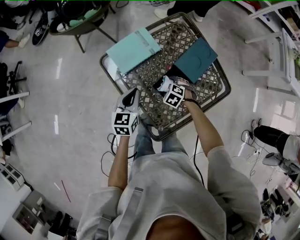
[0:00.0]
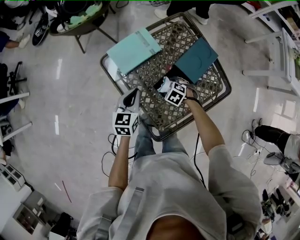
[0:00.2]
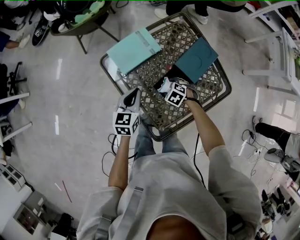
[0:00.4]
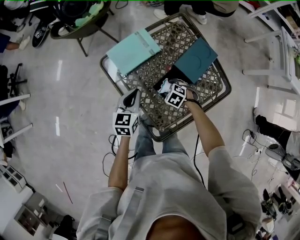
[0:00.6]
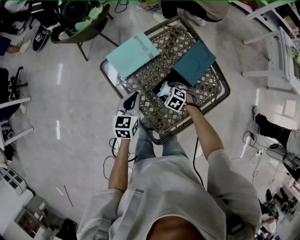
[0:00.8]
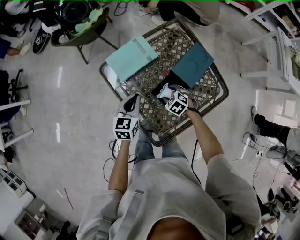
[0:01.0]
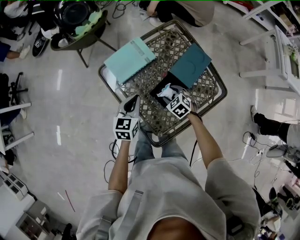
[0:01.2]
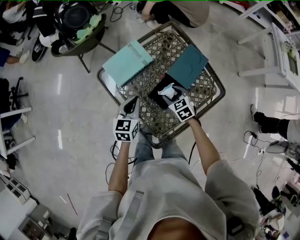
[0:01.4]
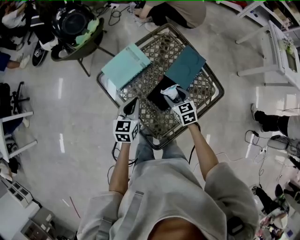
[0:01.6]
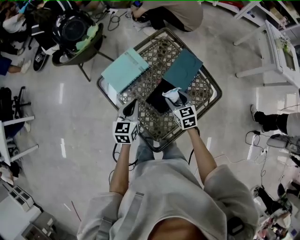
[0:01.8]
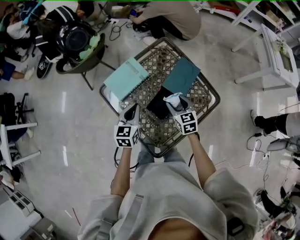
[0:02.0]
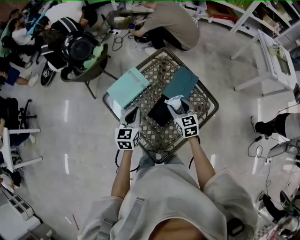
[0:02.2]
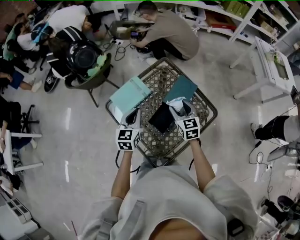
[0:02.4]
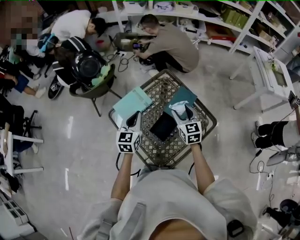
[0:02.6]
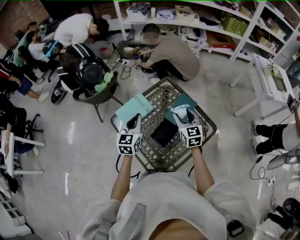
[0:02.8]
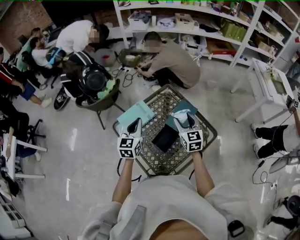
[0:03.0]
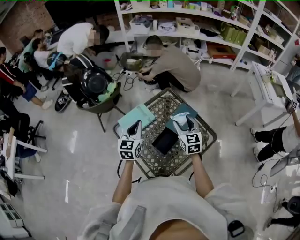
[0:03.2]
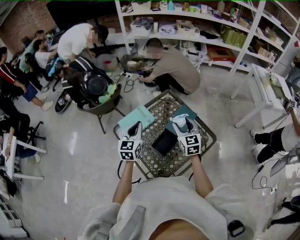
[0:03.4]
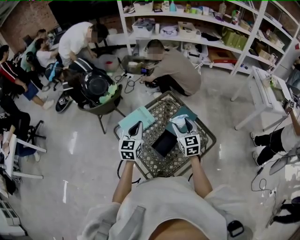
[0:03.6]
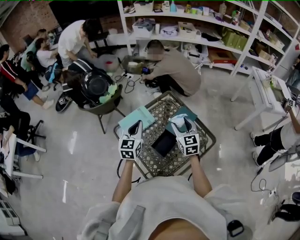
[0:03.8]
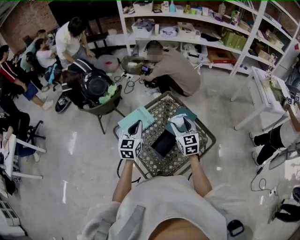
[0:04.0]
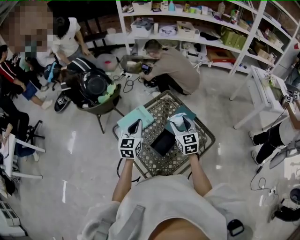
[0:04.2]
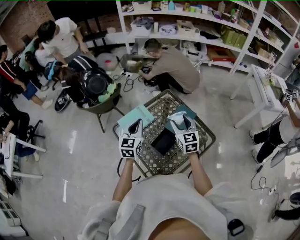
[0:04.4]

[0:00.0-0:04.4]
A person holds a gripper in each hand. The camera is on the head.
0:00.0 to 0:01.4: The right gripper shifts roughly 10 cm upward, and turns by about 40 degrees.
0:01.4 to 0:03.0: The grippers both shift upward by approximately 20 cm. The right gripper points its fingers roughly 30 degrees further upward.
0:03.0 to 0:04.4: The grippers stay close to where they were, moving slightly.

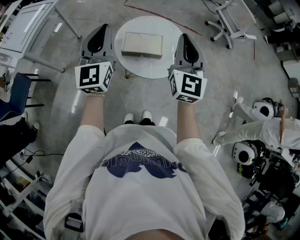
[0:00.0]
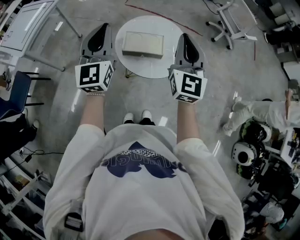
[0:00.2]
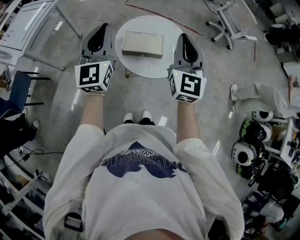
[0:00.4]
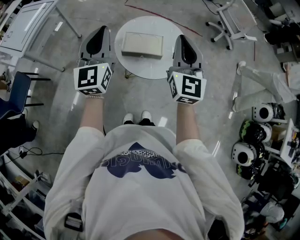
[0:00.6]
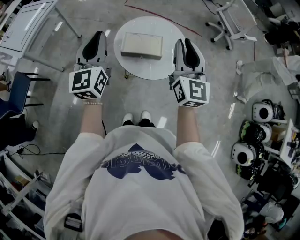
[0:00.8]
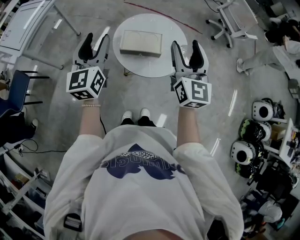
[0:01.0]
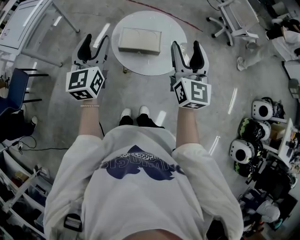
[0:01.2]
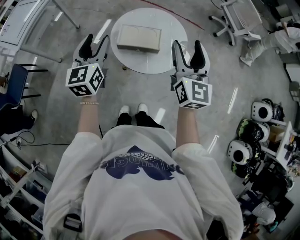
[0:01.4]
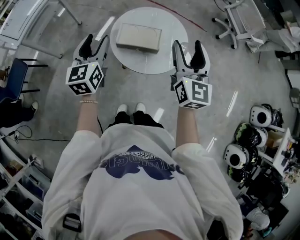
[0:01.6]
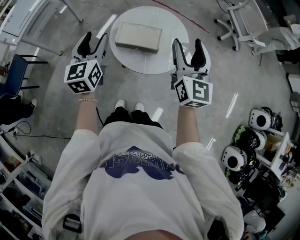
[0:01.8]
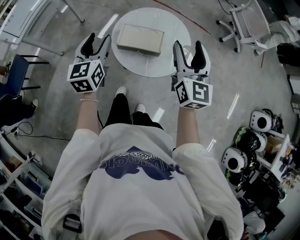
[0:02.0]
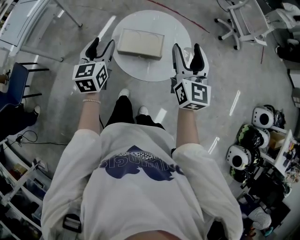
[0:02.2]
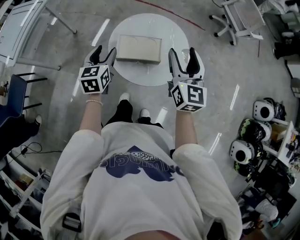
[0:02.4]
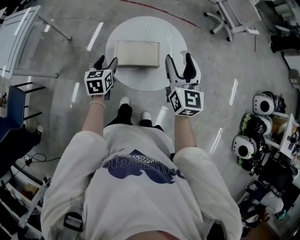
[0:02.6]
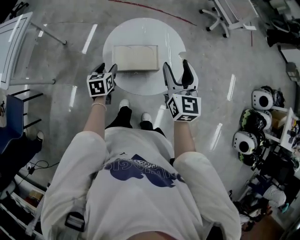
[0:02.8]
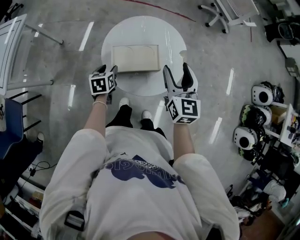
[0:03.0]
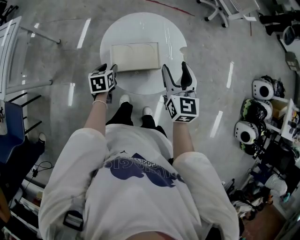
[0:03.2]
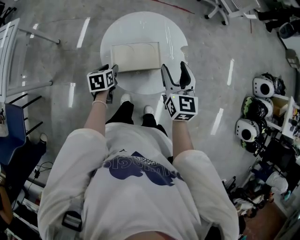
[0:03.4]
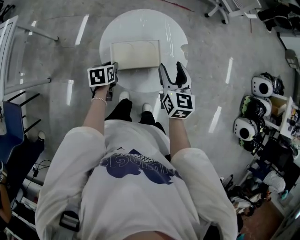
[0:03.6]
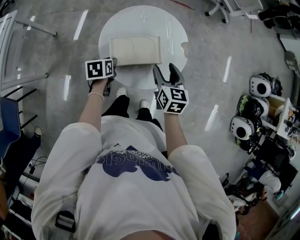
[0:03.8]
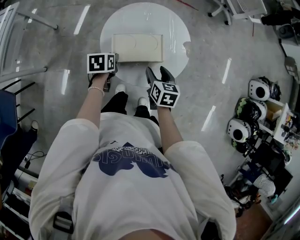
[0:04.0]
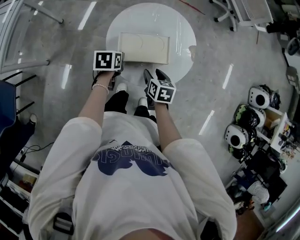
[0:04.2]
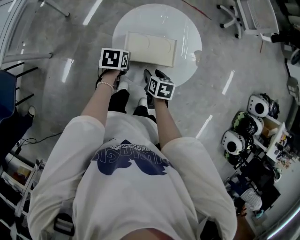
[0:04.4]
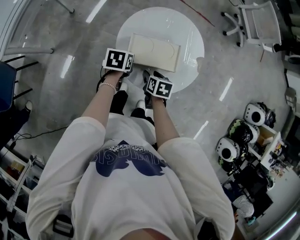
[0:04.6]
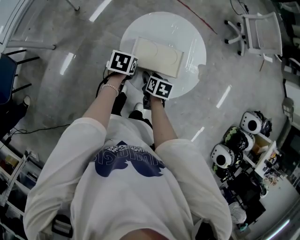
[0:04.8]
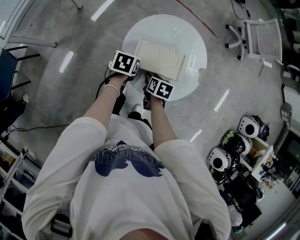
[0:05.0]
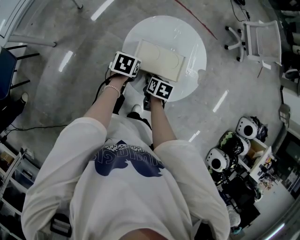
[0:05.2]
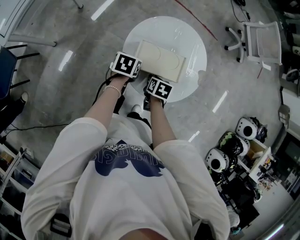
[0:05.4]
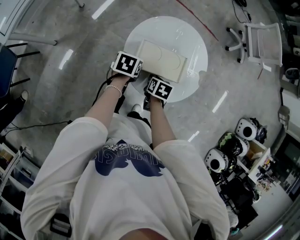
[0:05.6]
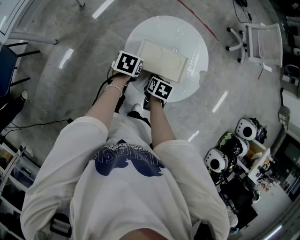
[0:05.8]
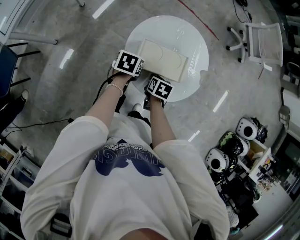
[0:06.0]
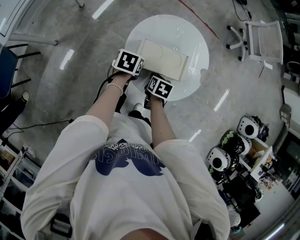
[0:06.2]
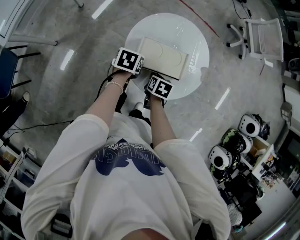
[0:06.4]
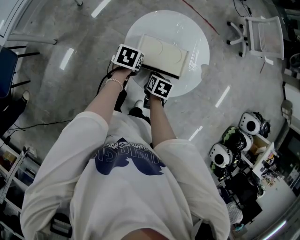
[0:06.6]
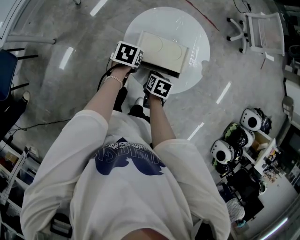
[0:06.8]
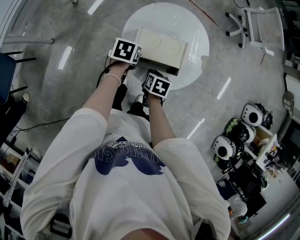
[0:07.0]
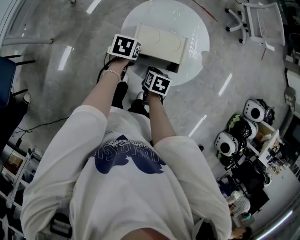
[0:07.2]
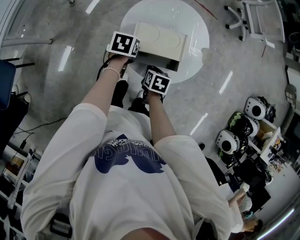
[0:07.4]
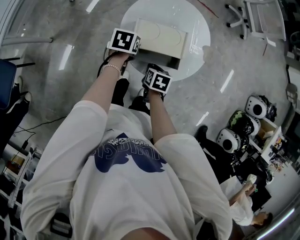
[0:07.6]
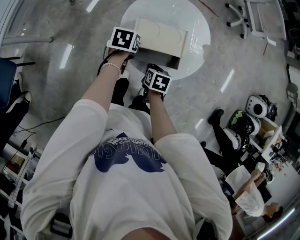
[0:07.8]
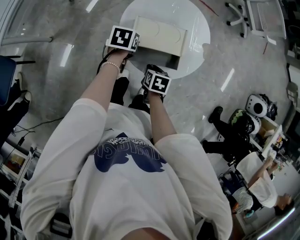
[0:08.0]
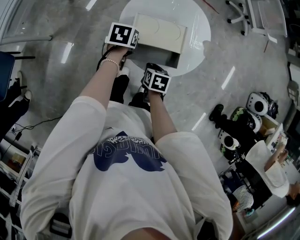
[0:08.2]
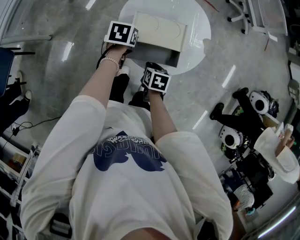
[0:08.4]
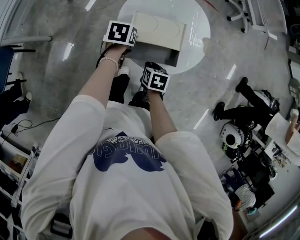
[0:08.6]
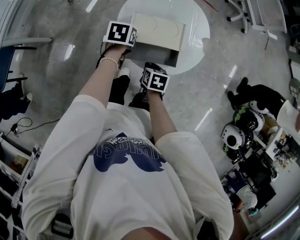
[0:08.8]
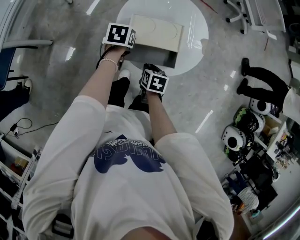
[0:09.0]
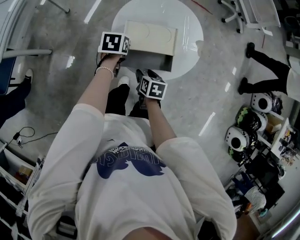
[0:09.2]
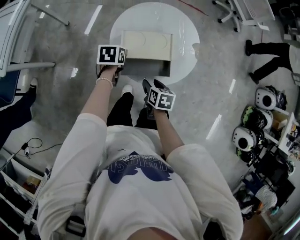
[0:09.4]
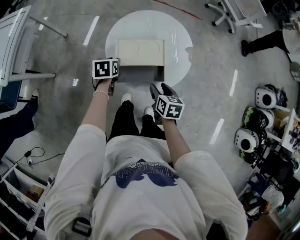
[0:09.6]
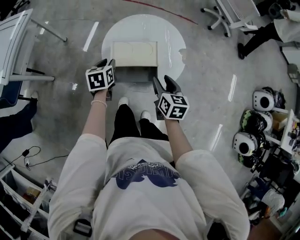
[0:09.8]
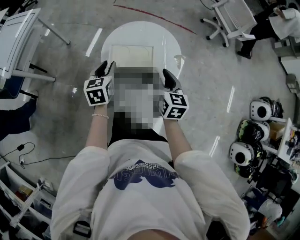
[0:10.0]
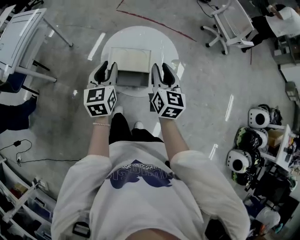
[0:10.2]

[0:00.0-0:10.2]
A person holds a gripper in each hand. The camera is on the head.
0:00.0 to 0:01.4: The left gripper travels downward by roughly 10 cm, swivels approximately 20 degrees, and opens up; the right gripper moves approximately 5 cm, and opens.
0:01.4 to 0:03.0: The left gripper shifts about 35 cm downward and forward, and tips its fingers downward by approximately 40 degrees; the right gripper goes some 15 cm downward and forward.
0:03.0 to 0:04.4: The left gripper closes, while the right gripper moves downward, roughly 25 cm, and angles its fingers downward, by roughly 40 degrees.
0:04.4 to 0:05.8: The right gripper closes.
0:05.8 to 0:07.2: The grippers stay close to where they were, moving slightly.
0:07.2 to 0:08.8: The grippers make only small movements.
0:08.8 to 0:10.2: The left gripper moves upward, roughly 25 cm, and angles its fingers upward, by about 40 degrees; the right gripper shifts some 35 cm upward and to the right, and tips its fingers upward by about 50 degrees.

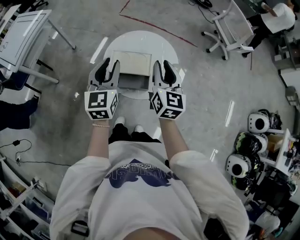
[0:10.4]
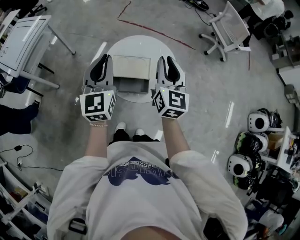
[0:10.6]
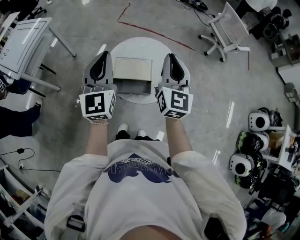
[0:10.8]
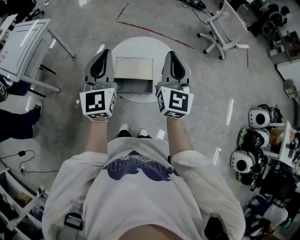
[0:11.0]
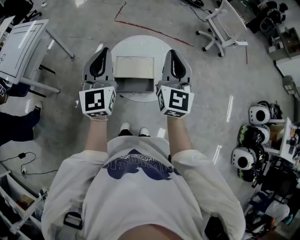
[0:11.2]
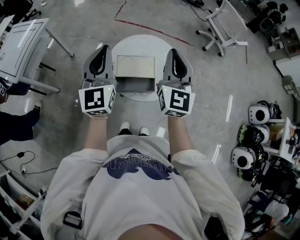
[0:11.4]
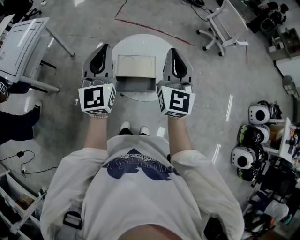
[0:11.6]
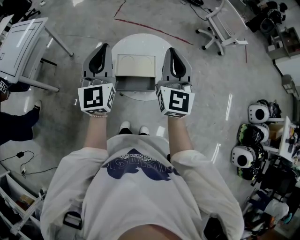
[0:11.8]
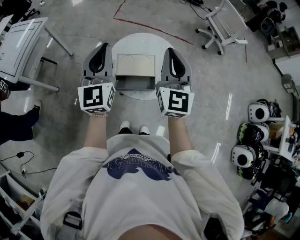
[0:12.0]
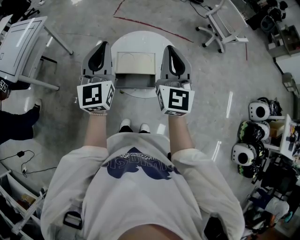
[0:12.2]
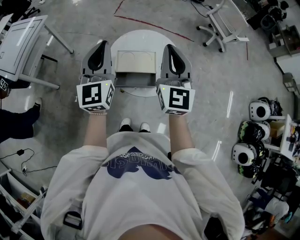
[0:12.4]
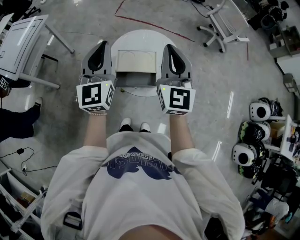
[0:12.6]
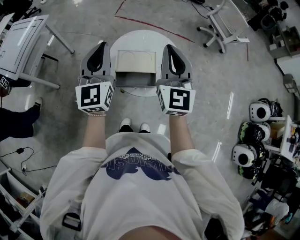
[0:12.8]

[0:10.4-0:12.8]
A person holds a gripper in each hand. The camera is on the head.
0:10.4 to 0:11.6: The left gripper moves upward and to the left, approximately 10 cm, and closes its fingers; the right gripper goes roughly 10 cm upward, rotates about 20 degrees, and closes up.
0:11.6 to 0:12.8: The grippers make only small movements.

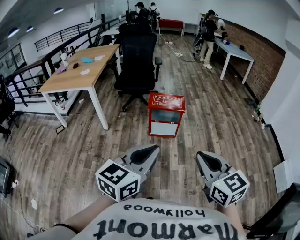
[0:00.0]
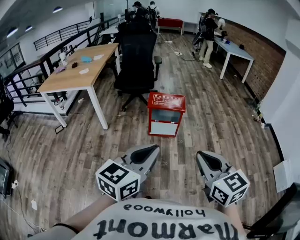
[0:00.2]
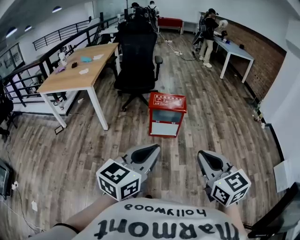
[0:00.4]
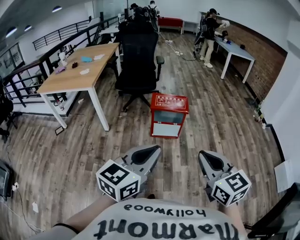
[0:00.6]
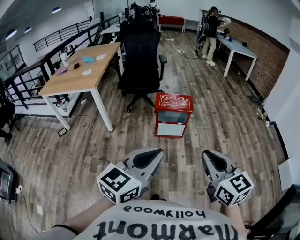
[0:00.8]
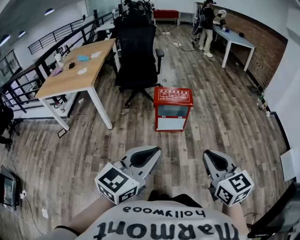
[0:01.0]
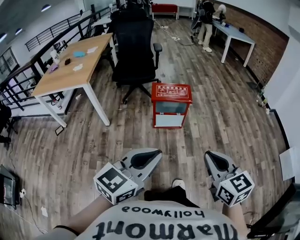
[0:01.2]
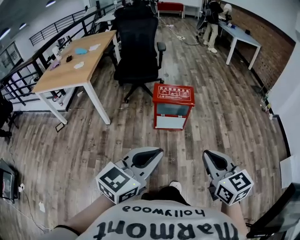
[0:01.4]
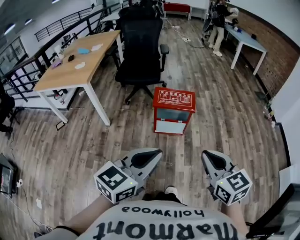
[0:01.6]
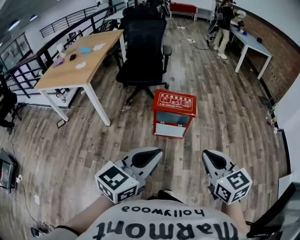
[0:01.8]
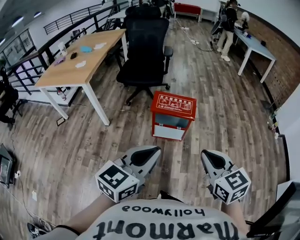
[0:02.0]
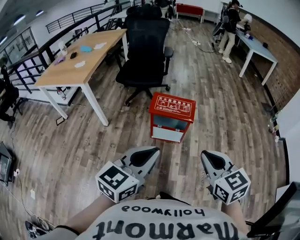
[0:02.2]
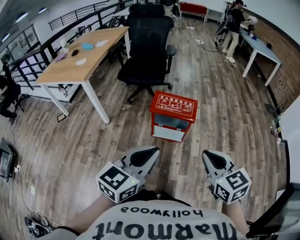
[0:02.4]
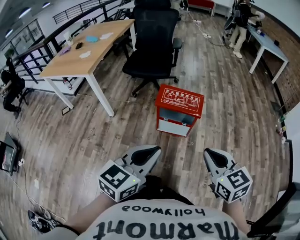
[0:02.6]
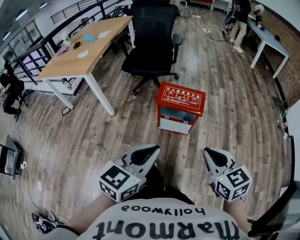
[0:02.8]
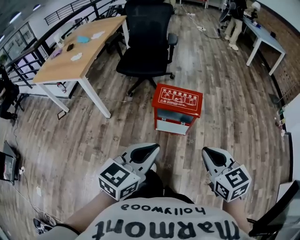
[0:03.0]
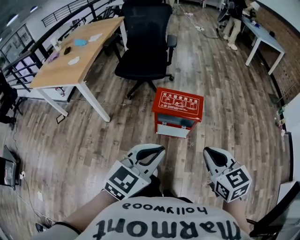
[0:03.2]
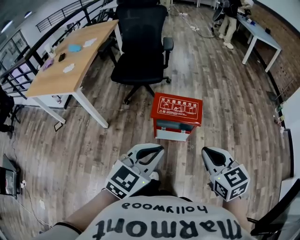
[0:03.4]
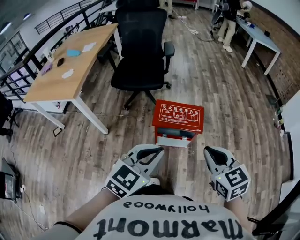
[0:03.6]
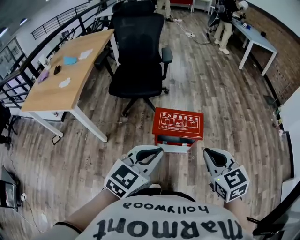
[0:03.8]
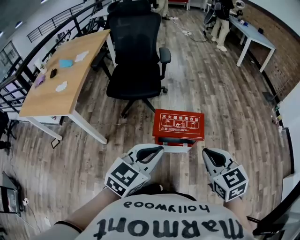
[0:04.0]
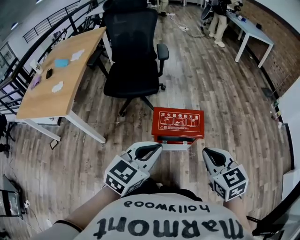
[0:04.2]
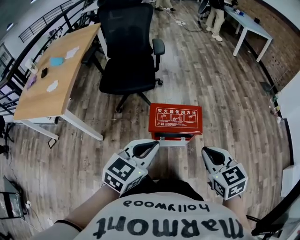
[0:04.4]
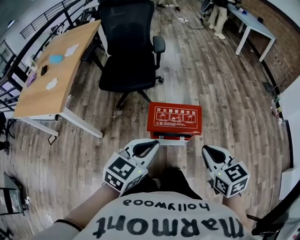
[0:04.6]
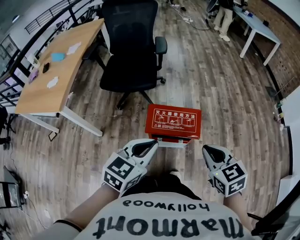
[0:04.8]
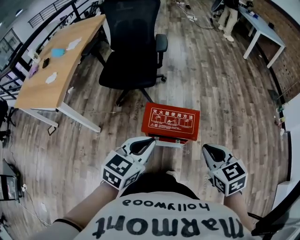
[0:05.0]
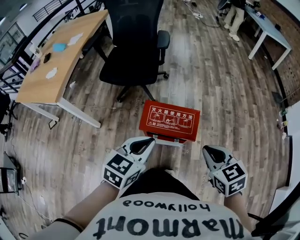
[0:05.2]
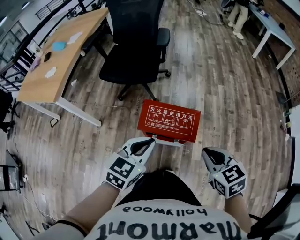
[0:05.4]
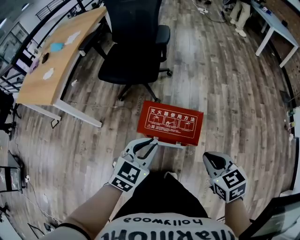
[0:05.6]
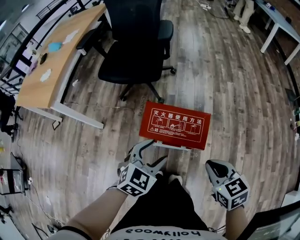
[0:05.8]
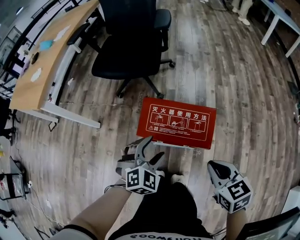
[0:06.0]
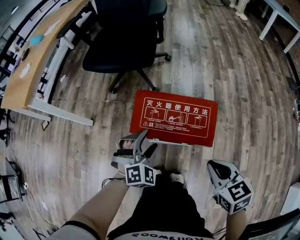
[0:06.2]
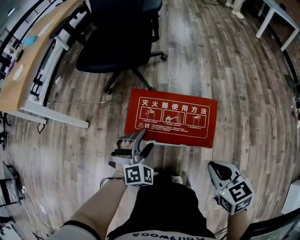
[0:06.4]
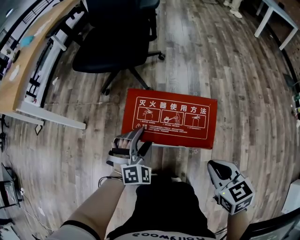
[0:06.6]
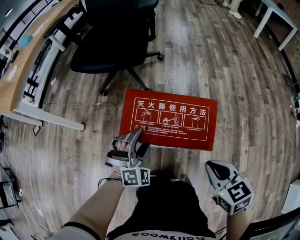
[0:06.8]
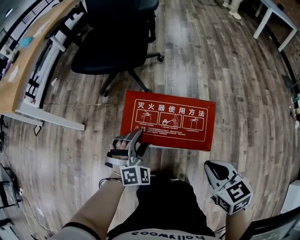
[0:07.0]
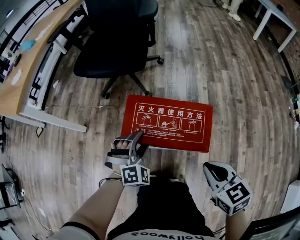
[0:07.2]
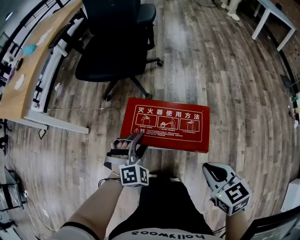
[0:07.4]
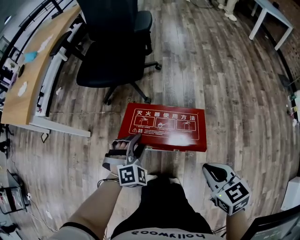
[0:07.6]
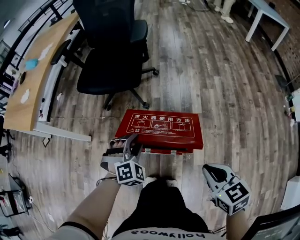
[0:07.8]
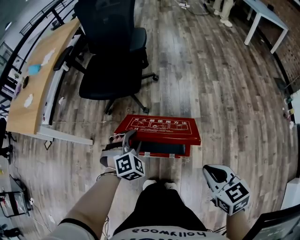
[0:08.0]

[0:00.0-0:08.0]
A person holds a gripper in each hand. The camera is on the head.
0:00.0 to 0:01.6: The two grippers go some 15 cm forward.
0:01.6 to 0:03.2: The grippers both shift forward by approximately 20 cm.
0:03.2 to 0:04.8: The grippers both shift forward by about 20 cm.
0:04.8 to 0:06.4: The two grippers go approximately 35 cm downward. The left gripper twists roughly 50 degrees clockwise, seen from behind, and opens its fingers.
0:06.4 to 0:08.0: The left gripper goes about 15 cm upward and forward, and closes its fingers, while the right gripper is displaced upward by some 15 cm.
